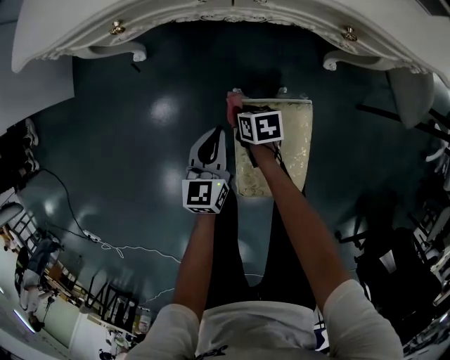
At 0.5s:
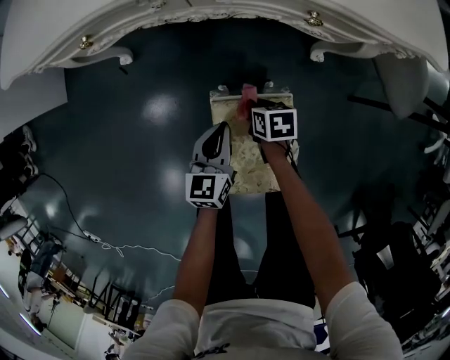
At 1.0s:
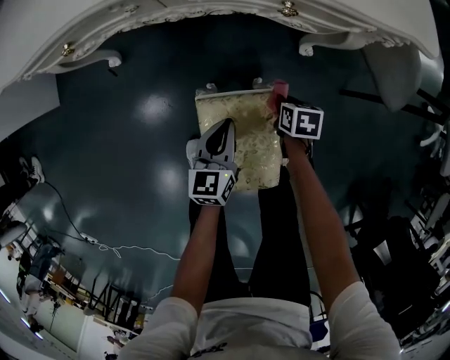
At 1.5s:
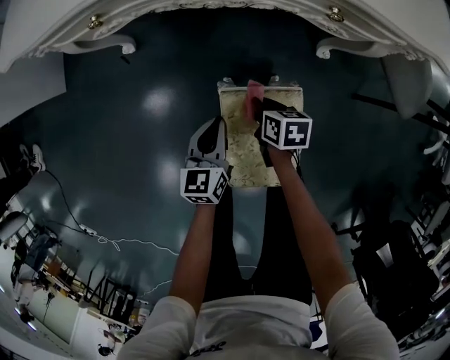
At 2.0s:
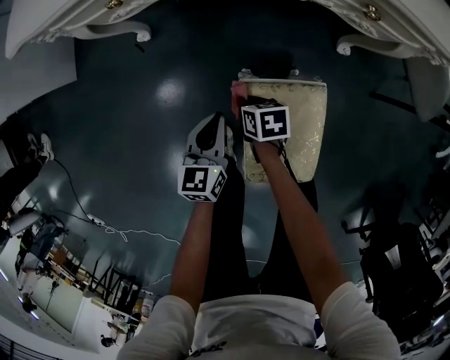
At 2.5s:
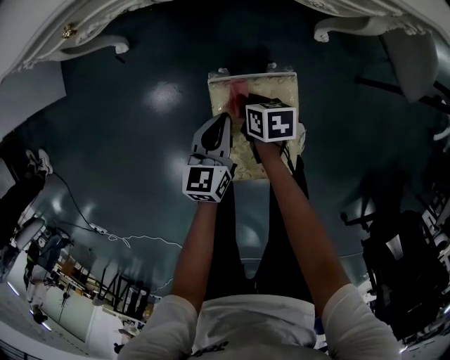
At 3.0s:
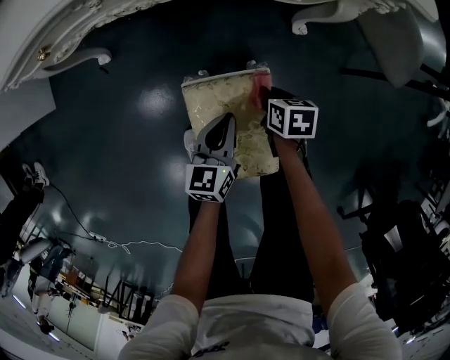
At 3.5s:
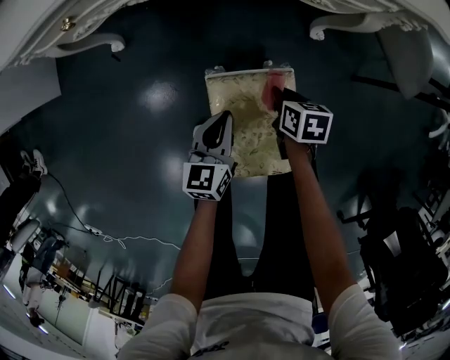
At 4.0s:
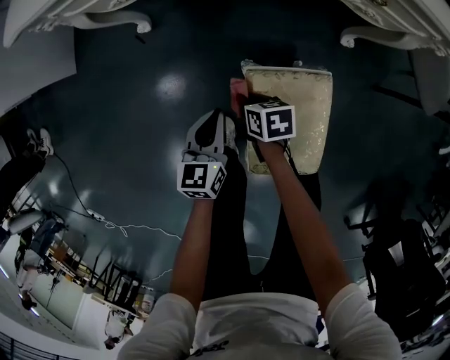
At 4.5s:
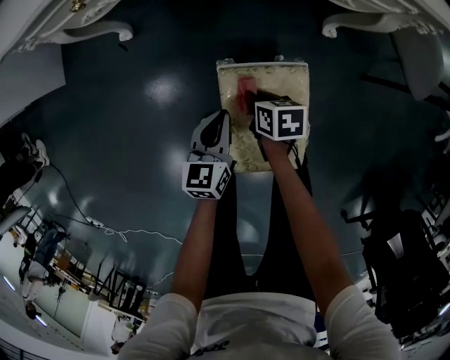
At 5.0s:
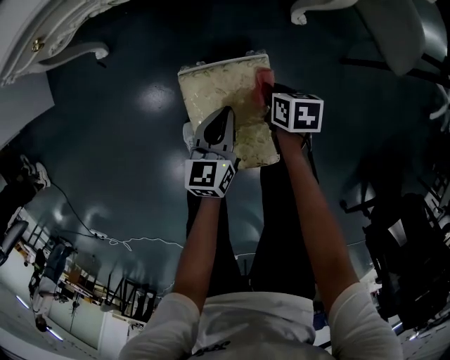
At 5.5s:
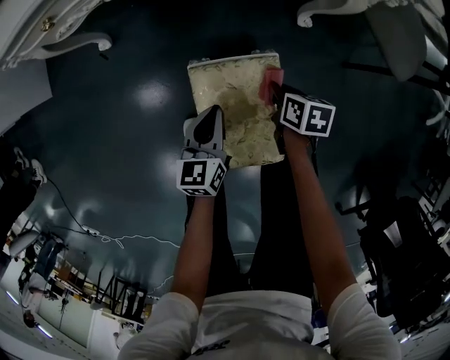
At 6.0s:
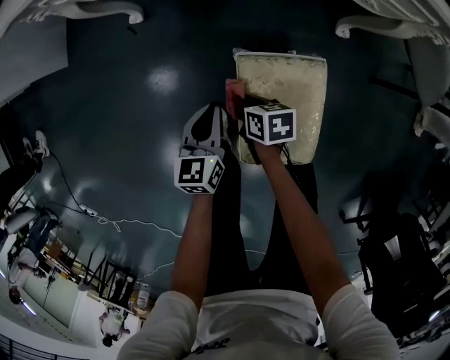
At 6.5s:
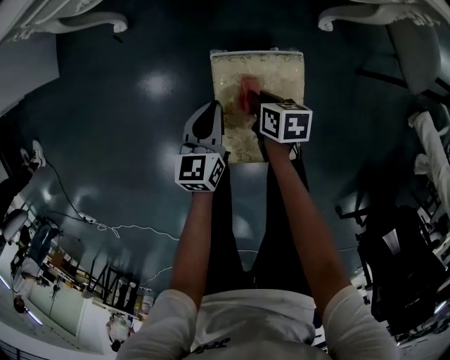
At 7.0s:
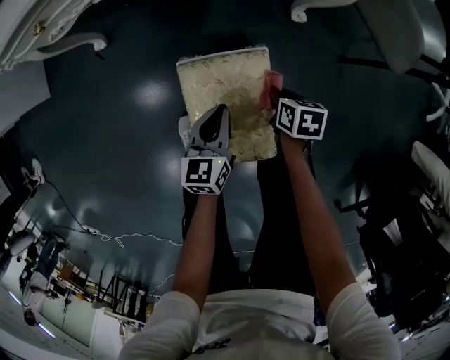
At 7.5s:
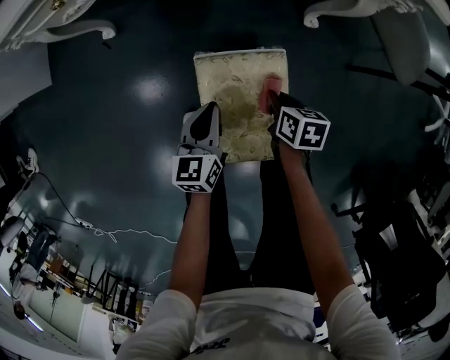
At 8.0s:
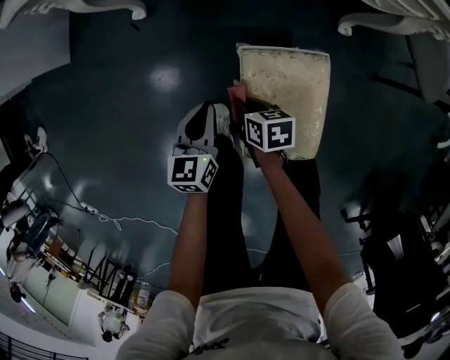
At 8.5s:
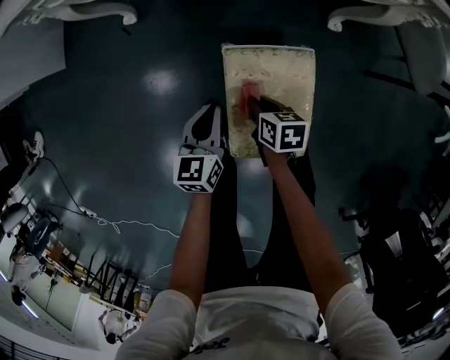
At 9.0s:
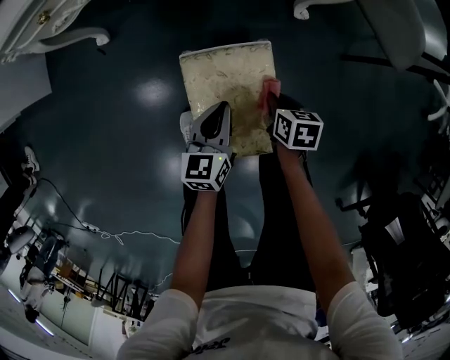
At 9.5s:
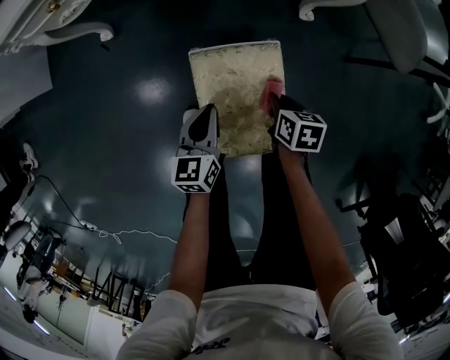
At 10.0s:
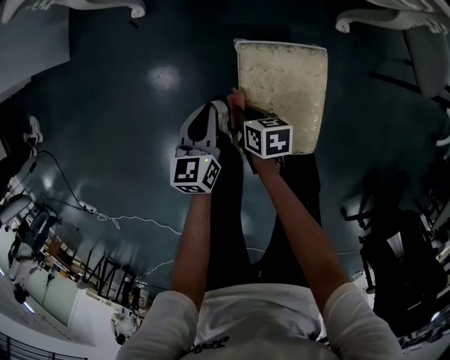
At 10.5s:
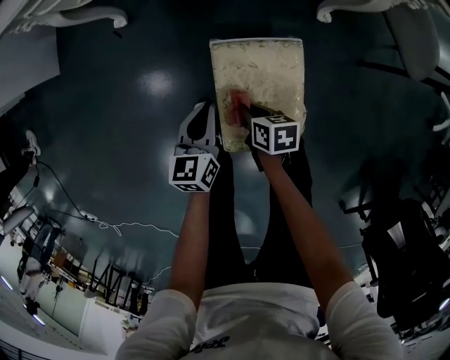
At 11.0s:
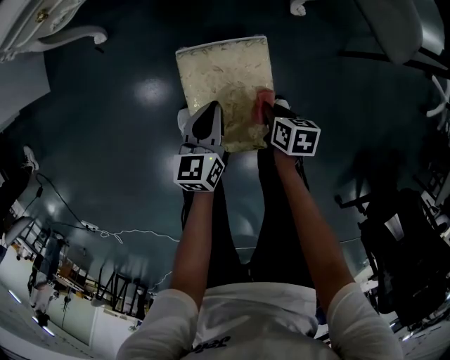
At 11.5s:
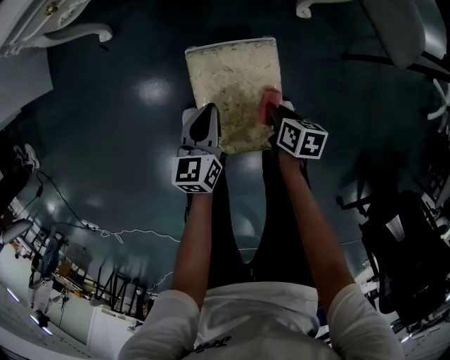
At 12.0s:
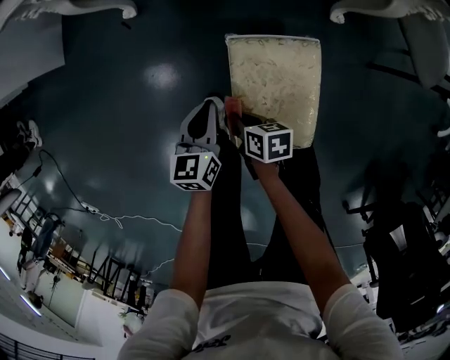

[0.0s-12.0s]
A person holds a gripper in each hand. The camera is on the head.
0.0s to 2.0s: The right gripper goes to the right and returns, roughly 25 cm each way, while the left gripper moves roughly 15 cm to the right and comes back.
2.0s to 4.0s: The right gripper goes to the right and returns, approximately 25 cm each way. Meanwhile the left gripper travels to the right and back again, approximately 20 cm each way.
4.0s to 6.0s: The left gripper goes to the right and returns, roughly 20 cm each way. The right gripper moves roughly 25 cm to the right and comes back.
6.0s to 8.0s: The right gripper reaches about 25 cm to the right, then returns; the left gripper travels to the right and back again, about 15 cm each way.
8.0s to 10.0s: The left gripper reaches about 20 cm to the right, then returns. Meanwhile the right gripper reaches roughly 25 cm to the right, then returns.
10.0s to 12.0s: The right gripper goes to the right and returns, roughly 25 cm each way. Meanwhile the left gripper travels to the right and back again, about 15 cm each way.

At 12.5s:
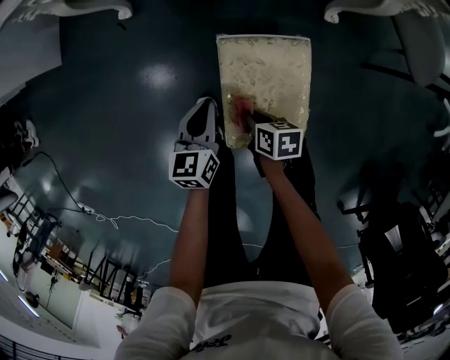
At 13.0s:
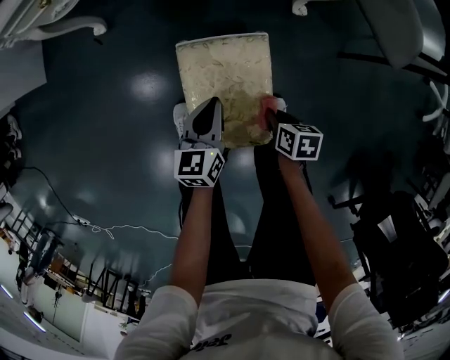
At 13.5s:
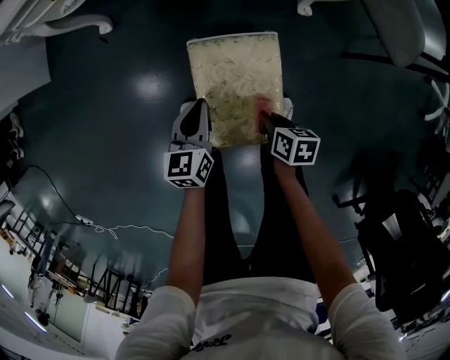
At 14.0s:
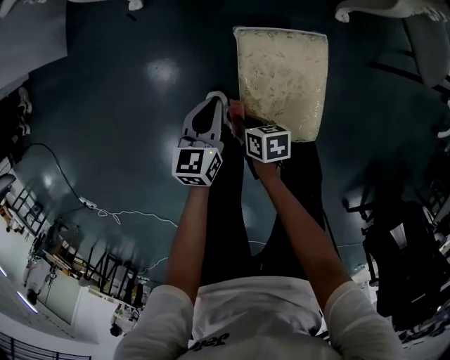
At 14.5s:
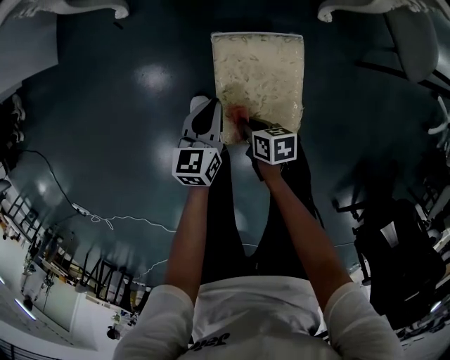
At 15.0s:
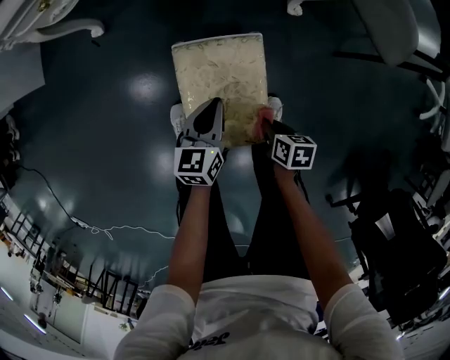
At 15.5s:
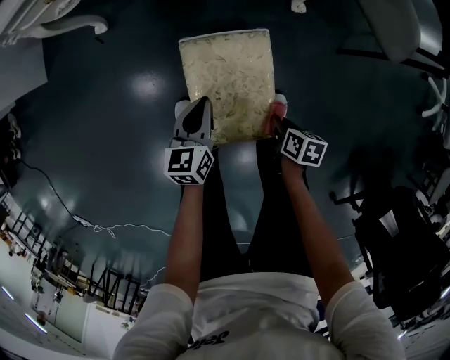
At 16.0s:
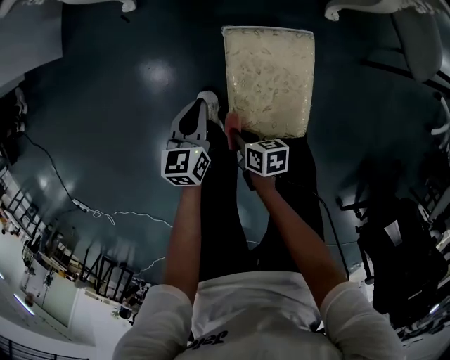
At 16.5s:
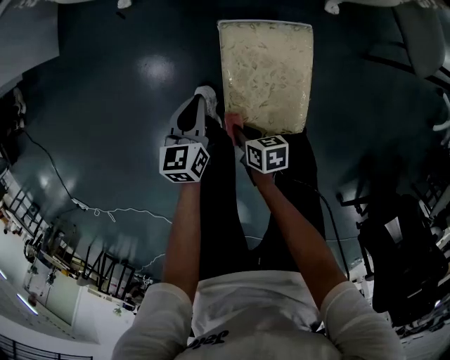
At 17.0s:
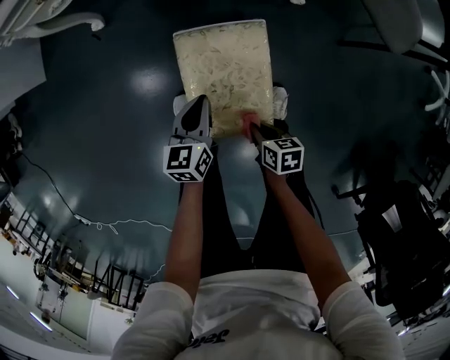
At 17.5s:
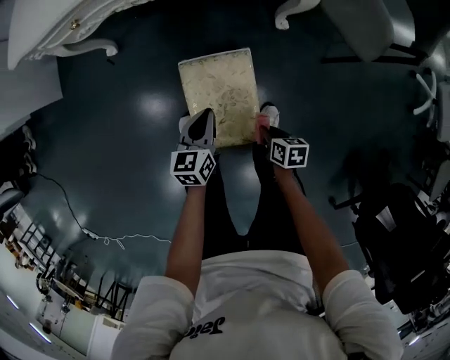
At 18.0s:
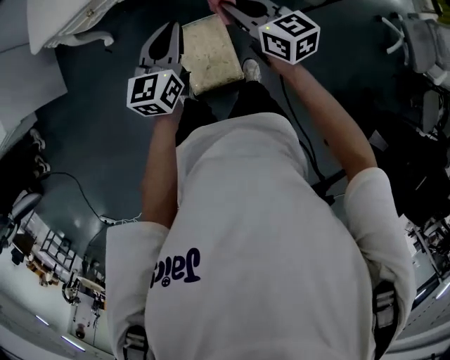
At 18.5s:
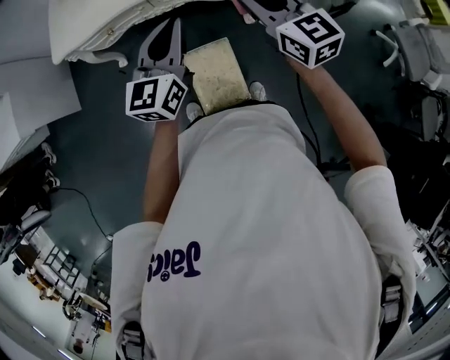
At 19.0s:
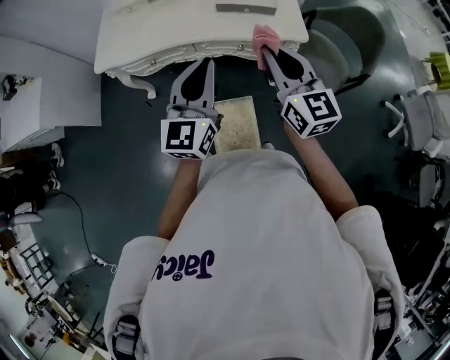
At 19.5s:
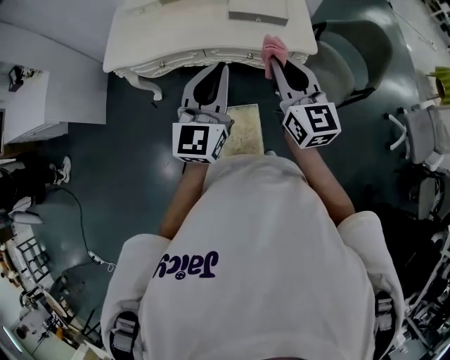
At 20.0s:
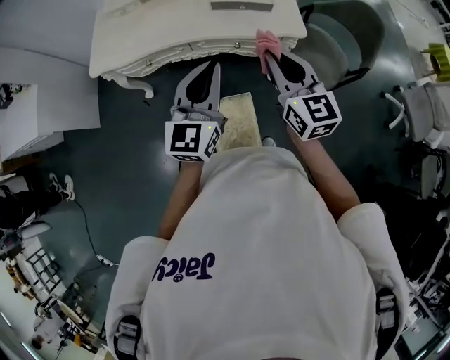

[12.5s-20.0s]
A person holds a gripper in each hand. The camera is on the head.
12.5s to 14.5s: The right gripper goes left and right, about 25 cm each way, reversing 2 times. The left gripper goes left and right, roughly 15 cm each way, reversing 2 times.
14.5s to 16.5s: The left gripper moves roughly 10 cm to the right and comes back, while the right gripper goes about 5 cm downward, and travels to the right and back again, some 20 cm each way.
16.5s to 18.0s: The two grippers travel together, backward, roughly 50 cm. The right gripper is displaced upward by about 25 cm, and tips its fingers upward by approximately 30 degrees. The left gripper swivels about 30 degrees.
18.0s to 20.0s: The right gripper ends up about 15 cm from where it was, and swivels some 20 degrees; the left gripper moves roughly 20 cm, and rotates some 20 degrees.

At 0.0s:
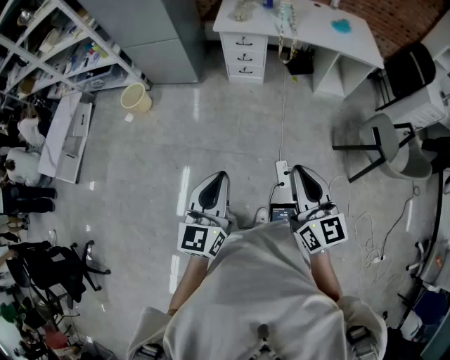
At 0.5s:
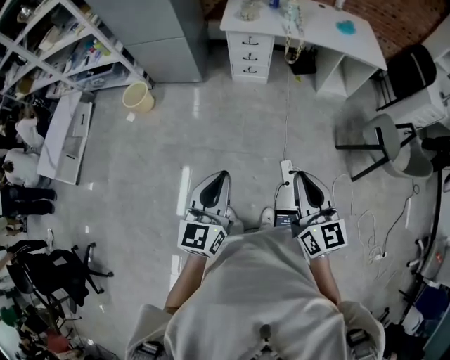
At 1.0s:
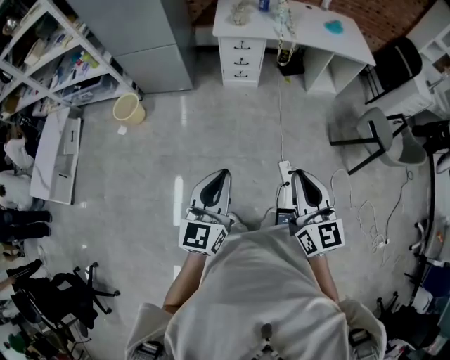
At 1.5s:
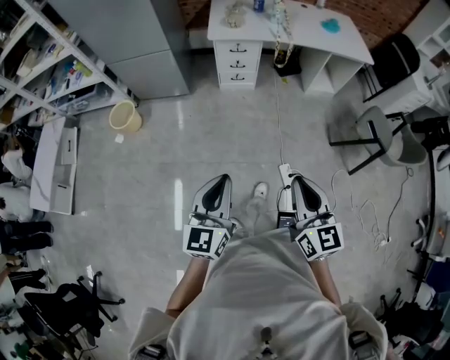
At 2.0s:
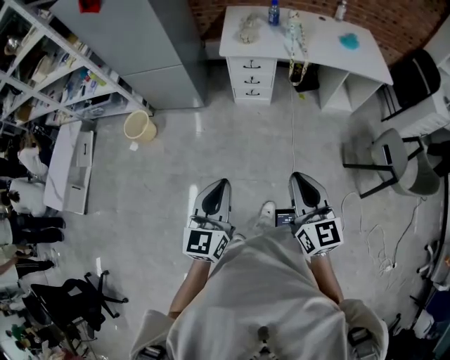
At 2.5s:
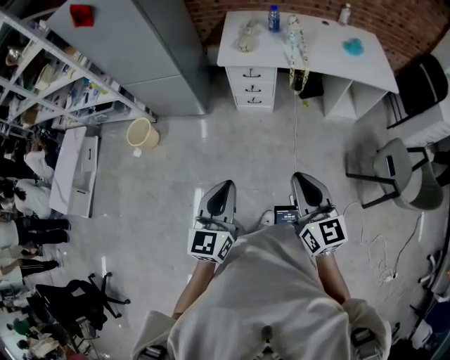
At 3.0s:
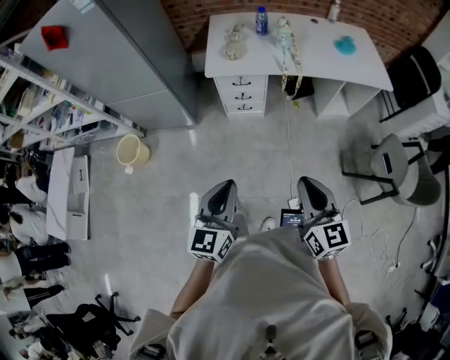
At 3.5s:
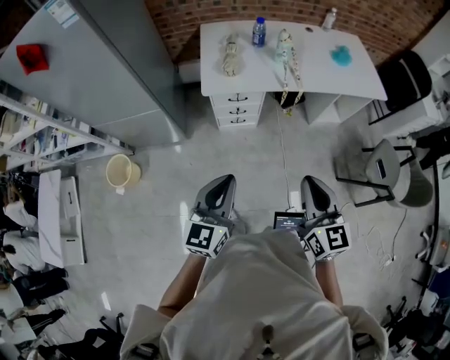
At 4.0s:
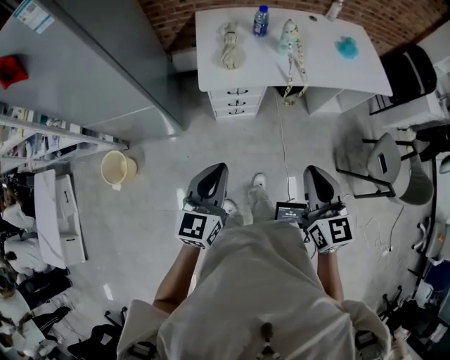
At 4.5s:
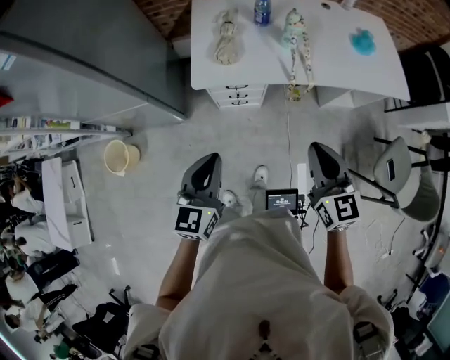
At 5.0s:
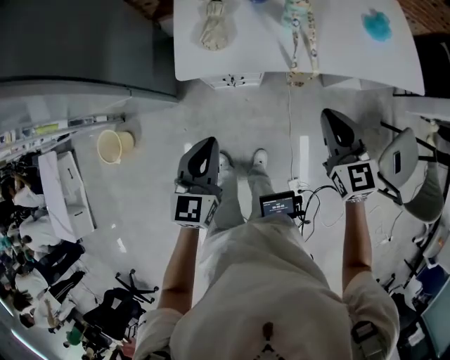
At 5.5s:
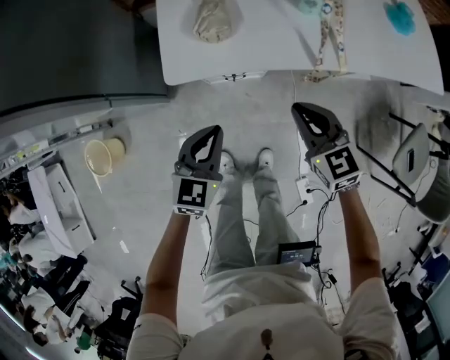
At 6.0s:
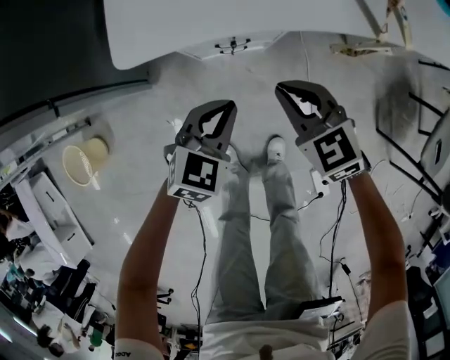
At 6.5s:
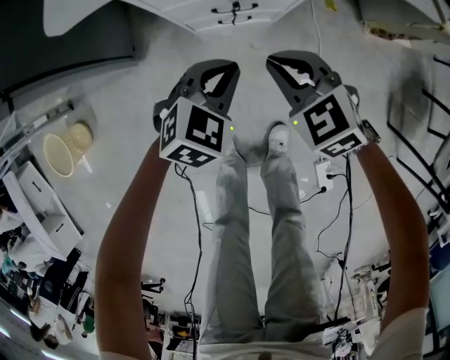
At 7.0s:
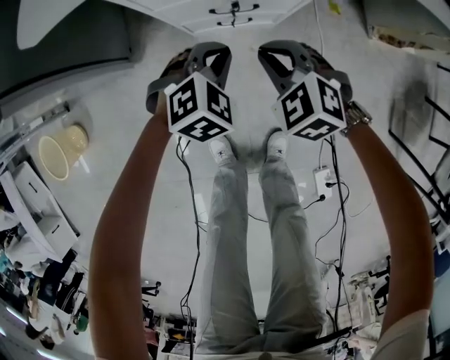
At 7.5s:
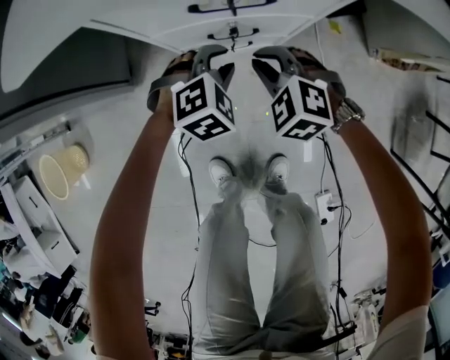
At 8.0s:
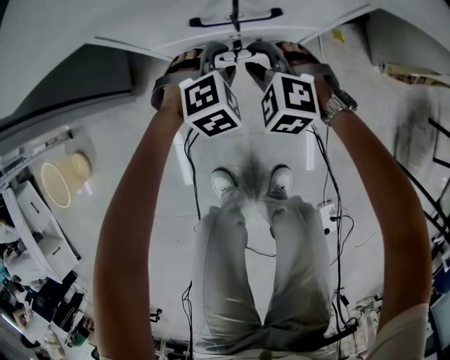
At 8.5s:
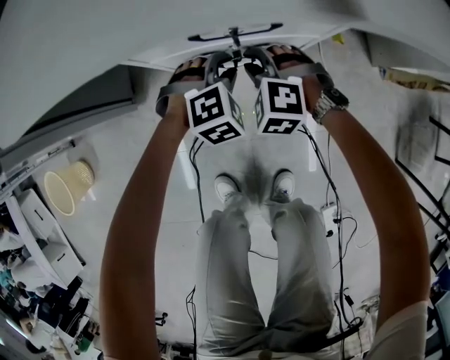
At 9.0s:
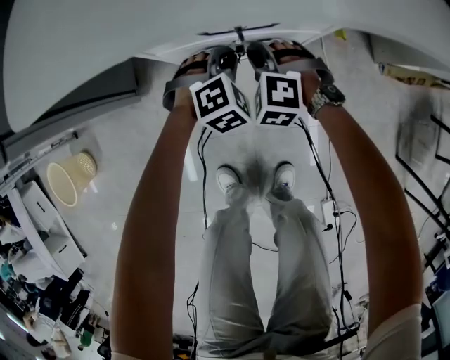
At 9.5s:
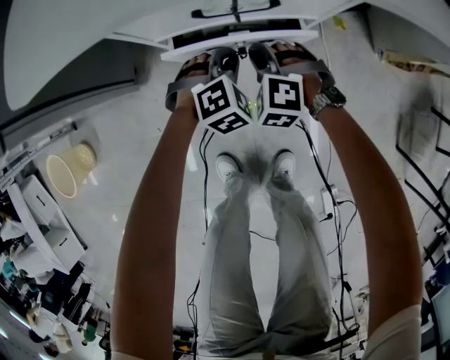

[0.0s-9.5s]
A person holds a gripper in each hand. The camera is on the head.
0.0s to 2.0s: The grippers both shift forward and to the left by some 20 cm.
2.0s to 4.0s: Both grippers move forward, roughly 35 cm.
4.0s to 5.5s: The right gripper goes some 40 cm forward and downward, and changes its angle by roughly 30 degrees. Meanwhile the left gripper is displaced downward and forward by about 35 cm, and turns by approximately 20 degrees.
5.5s to 7.5s: Both grippers travel together downward, roughly 40 cm. The left gripper rolls clockwise, seen from behind, by about 40 degrees, and opens its fingers. The right gripper rotates about 50 degrees.
7.5s to 9.5s: The right gripper changes place by about 5 cm, and opens, then closes once more; the left gripper closes its fingers.
